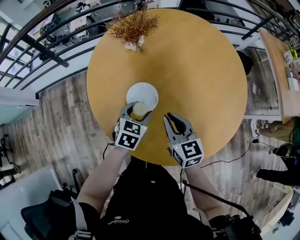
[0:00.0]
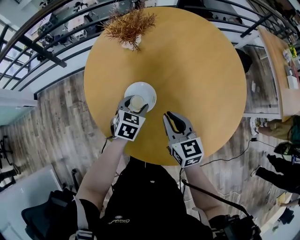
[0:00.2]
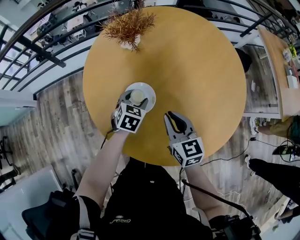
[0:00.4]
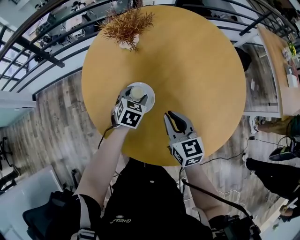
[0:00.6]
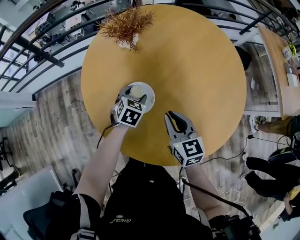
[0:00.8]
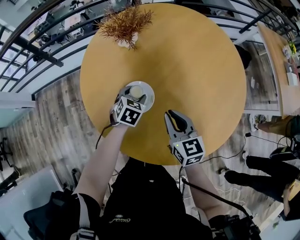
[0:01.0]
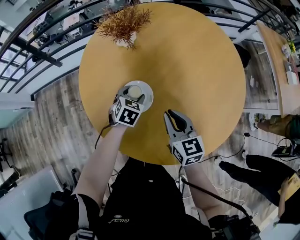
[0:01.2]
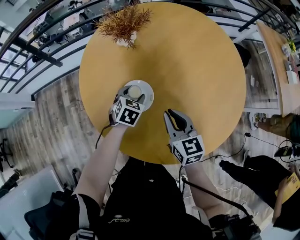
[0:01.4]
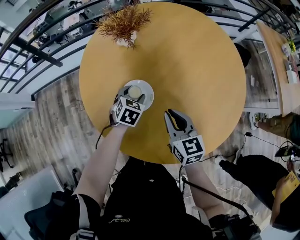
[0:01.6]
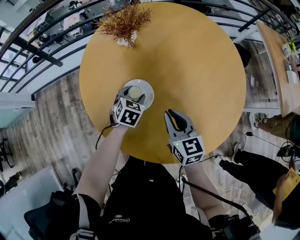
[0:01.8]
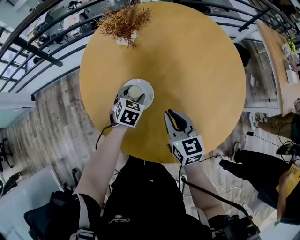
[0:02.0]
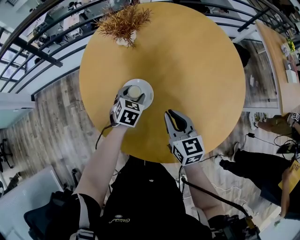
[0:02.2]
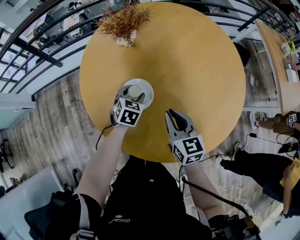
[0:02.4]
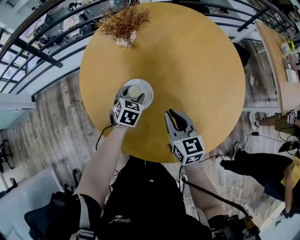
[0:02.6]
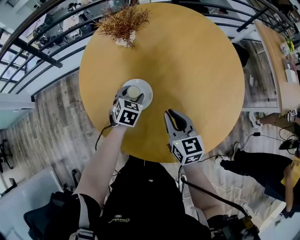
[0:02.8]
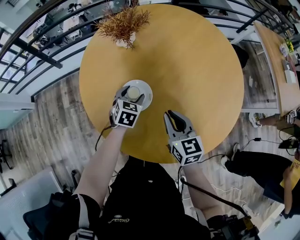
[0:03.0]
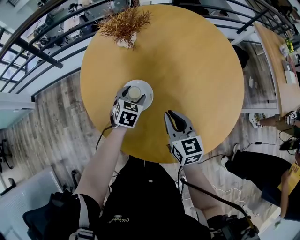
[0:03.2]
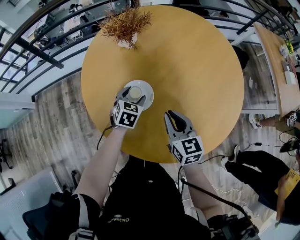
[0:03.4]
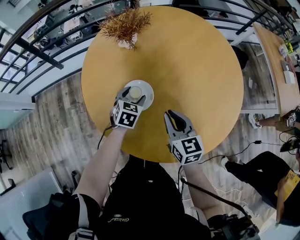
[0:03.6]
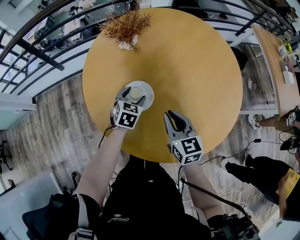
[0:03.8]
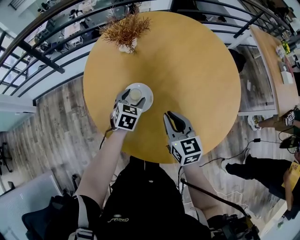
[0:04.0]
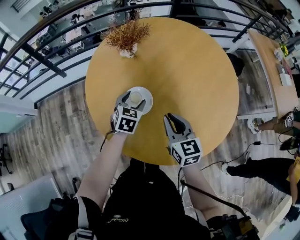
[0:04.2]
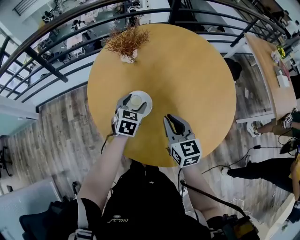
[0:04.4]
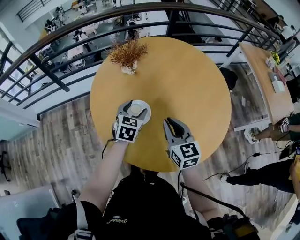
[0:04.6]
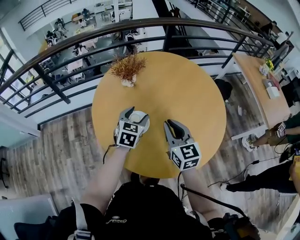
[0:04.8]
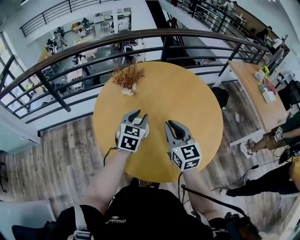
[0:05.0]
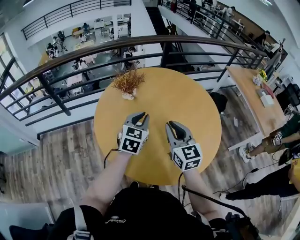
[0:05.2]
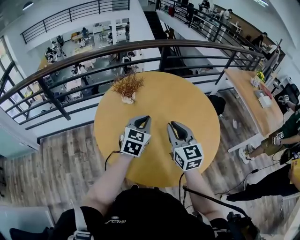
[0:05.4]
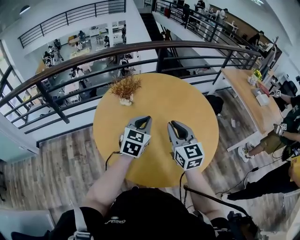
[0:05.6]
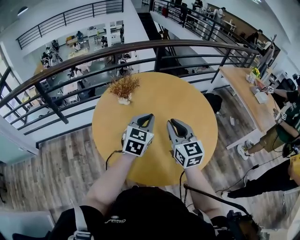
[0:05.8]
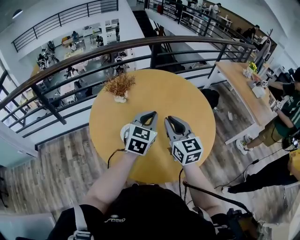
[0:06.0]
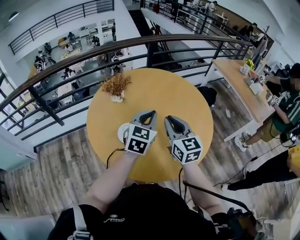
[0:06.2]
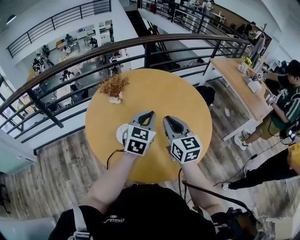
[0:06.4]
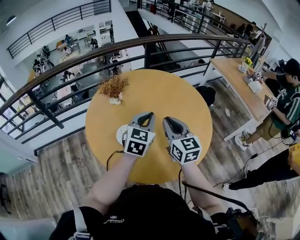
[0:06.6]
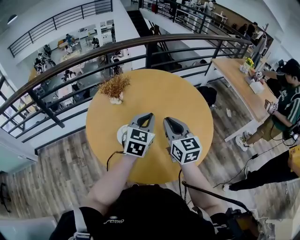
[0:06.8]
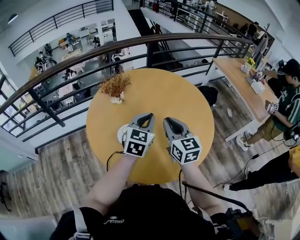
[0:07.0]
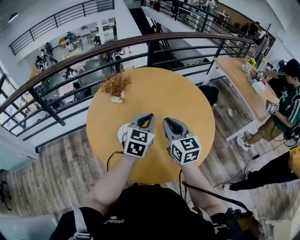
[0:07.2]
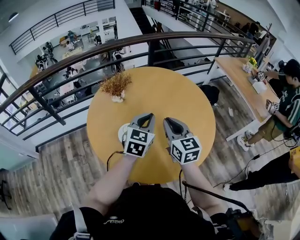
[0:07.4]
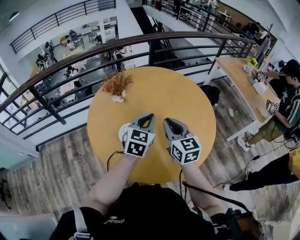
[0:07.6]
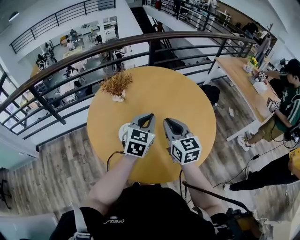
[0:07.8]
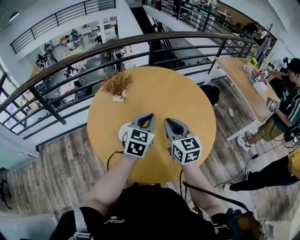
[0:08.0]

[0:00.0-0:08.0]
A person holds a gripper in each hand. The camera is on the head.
0:00.0 to 0:01.6: The left gripper travels forward and downward by approximately 10 cm.
0:01.6 to 0:03.2: There are only small adjustments of the grippers.
0:03.2 to 0:04.8: The grippers both shift upward by some 15 cm.
0:04.8 to 0:06.4: The right gripper heads upward and to the right, covering some 10 cm. Meanwhile the left gripper moves upward and to the right, roughly 20 cm, and closes up.
0:06.4 to 0:08.0: The grippers move only a little.

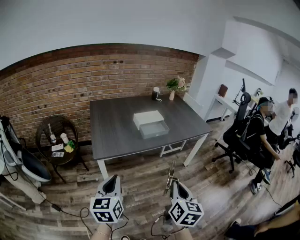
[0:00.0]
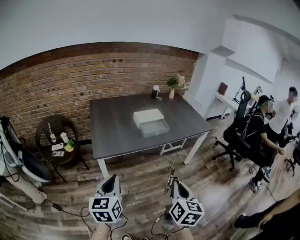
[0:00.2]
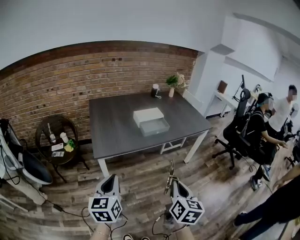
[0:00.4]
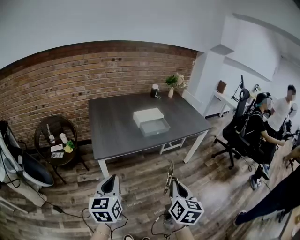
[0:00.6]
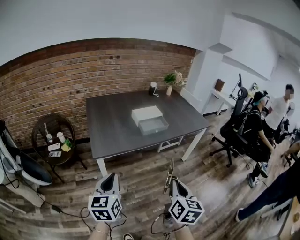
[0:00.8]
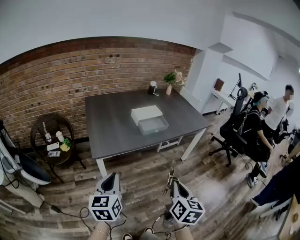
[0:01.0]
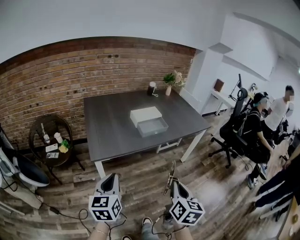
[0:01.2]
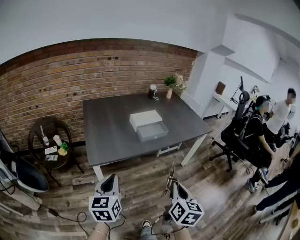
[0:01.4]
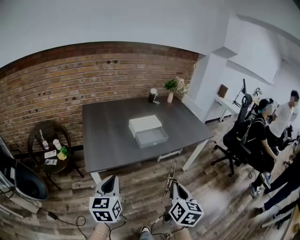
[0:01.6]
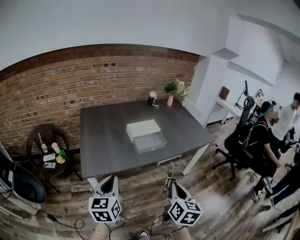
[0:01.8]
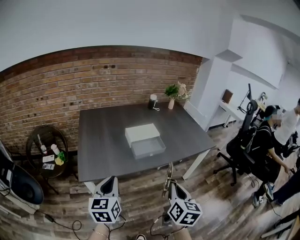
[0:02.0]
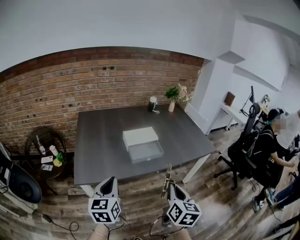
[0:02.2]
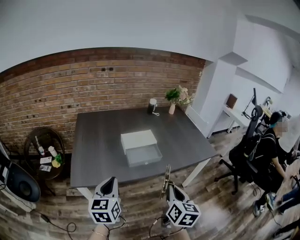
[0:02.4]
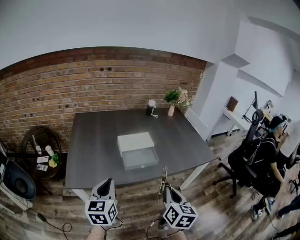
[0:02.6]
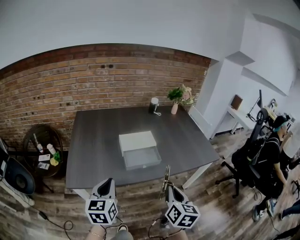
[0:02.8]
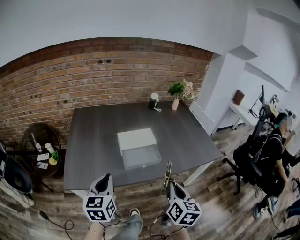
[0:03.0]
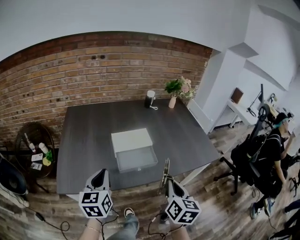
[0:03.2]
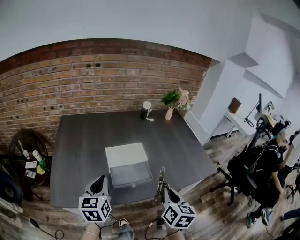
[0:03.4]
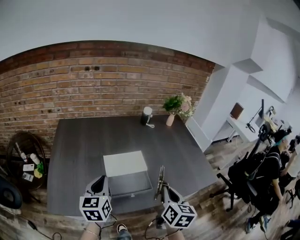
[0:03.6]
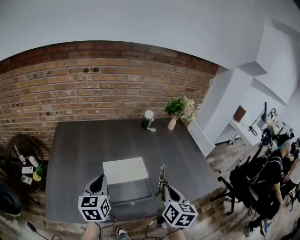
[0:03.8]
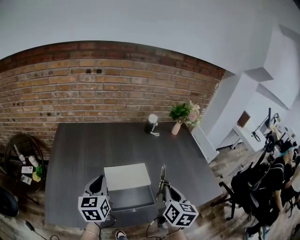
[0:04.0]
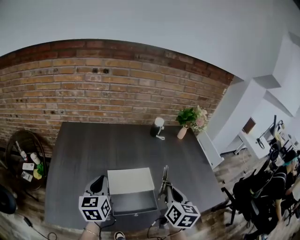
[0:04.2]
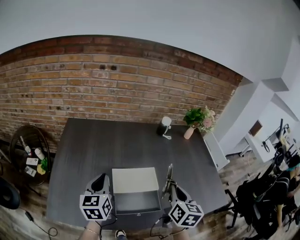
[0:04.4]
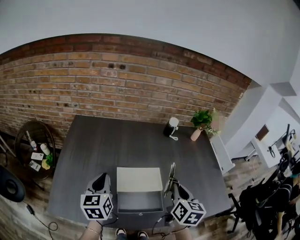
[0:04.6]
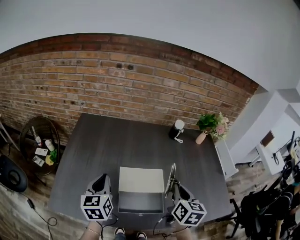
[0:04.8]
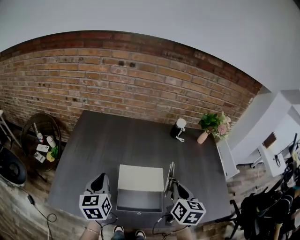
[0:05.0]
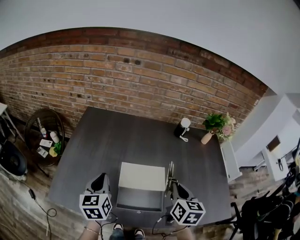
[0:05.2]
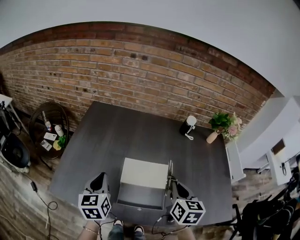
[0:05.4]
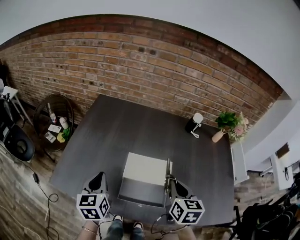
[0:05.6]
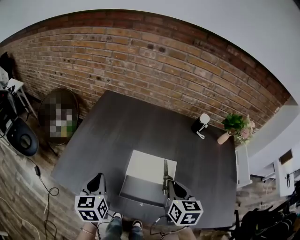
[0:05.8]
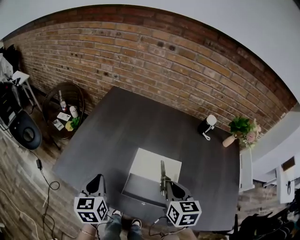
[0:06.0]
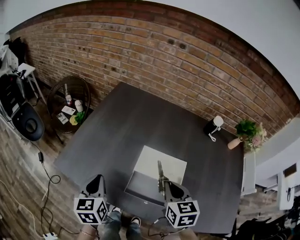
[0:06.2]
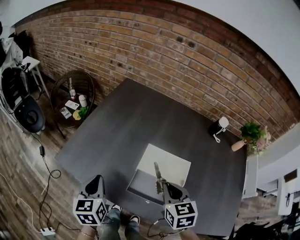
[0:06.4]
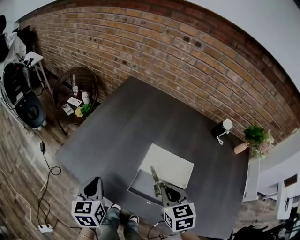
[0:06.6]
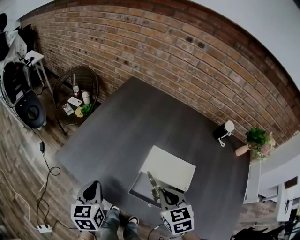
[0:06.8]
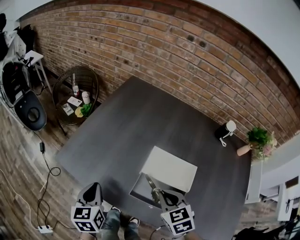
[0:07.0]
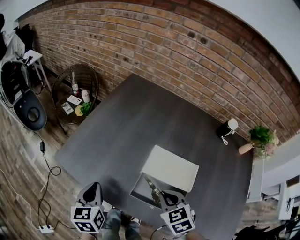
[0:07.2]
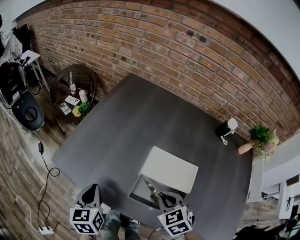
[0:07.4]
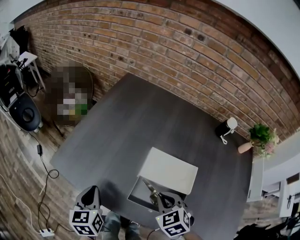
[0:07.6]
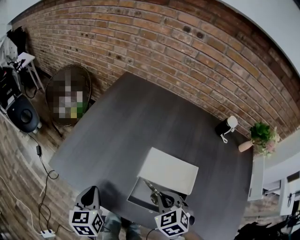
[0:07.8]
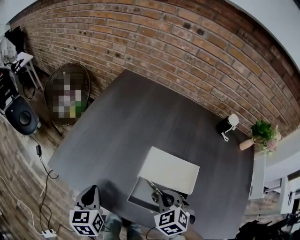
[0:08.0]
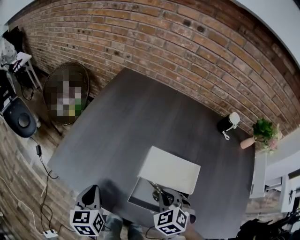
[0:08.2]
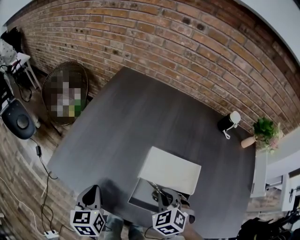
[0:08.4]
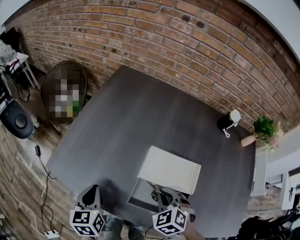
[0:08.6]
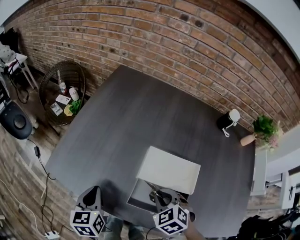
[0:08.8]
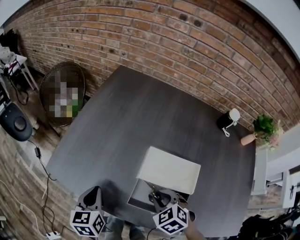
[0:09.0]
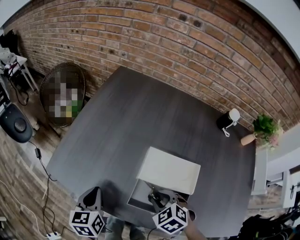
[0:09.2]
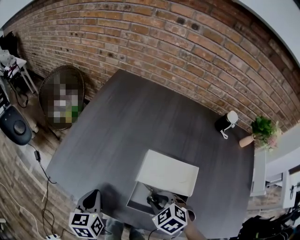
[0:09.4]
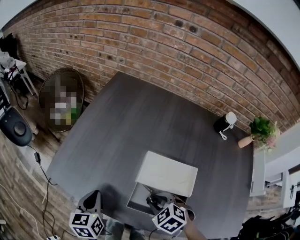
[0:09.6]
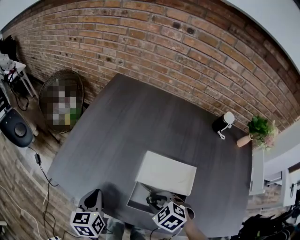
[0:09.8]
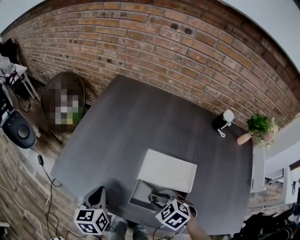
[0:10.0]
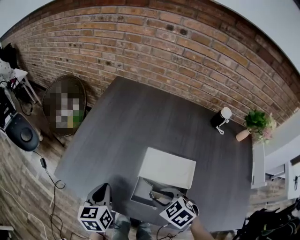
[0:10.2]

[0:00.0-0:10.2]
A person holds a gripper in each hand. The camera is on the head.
0:00.0 to 0:01.4: Both grippers move forward, approximately 5 cm.
0:01.4 to 0:03.0: The two grippers go approximately 30 cm forward and to the right.
0:03.0 to 0:04.4: Both grippers move forward, some 30 cm.
0:04.4 to 0:05.8: The left gripper ends up approximately 15 cm from where it was, and rotates some 20 degrees, while the right gripper changes place by approximately 10 cm, and turns by some 30 degrees.
0:05.8 to 0:07.2: The right gripper goes roughly 15 cm to the left and downward, and swivels about 40 degrees. Meanwhile the left gripper heads downward and to the left, covering approximately 10 cm.
0:07.2 to 0:08.8: The left gripper shifts by some 5 cm; the right gripper moves downward, roughly 5 cm.
0:08.8 to 0:10.2: The right gripper opens its fingers.

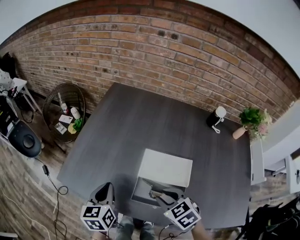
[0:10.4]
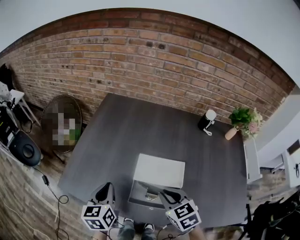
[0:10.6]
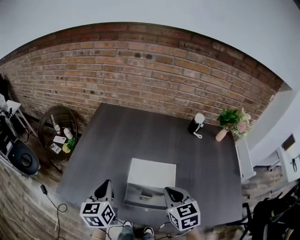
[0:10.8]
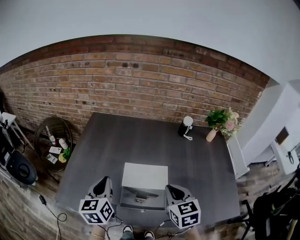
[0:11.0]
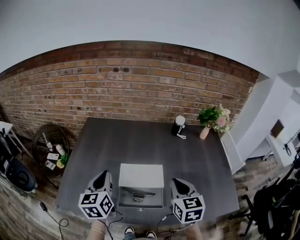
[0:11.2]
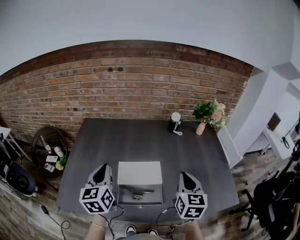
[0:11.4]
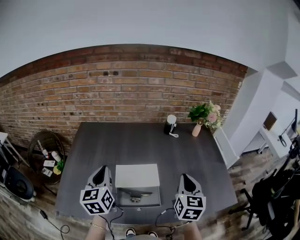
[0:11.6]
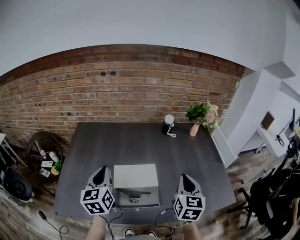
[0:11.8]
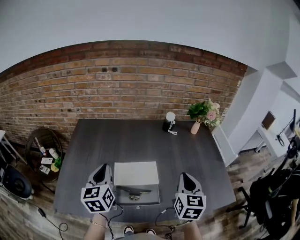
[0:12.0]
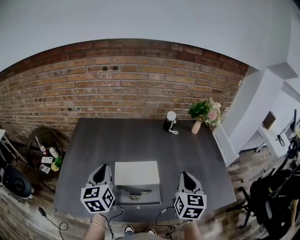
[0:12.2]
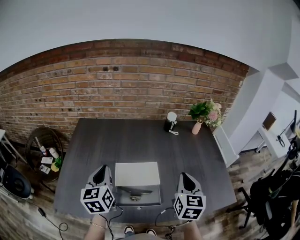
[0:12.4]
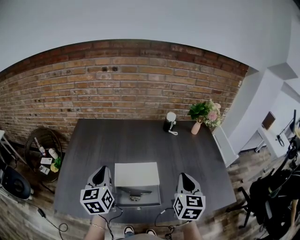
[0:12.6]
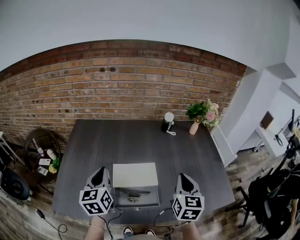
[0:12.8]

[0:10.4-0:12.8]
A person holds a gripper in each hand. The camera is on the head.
0:10.4 to 0:11.6: The left gripper moves upward, some 15 cm, and changes its angle by some 20 degrees. The right gripper changes place by about 30 cm, tilts its fingers some 40 degrees upward, and closes its fingers.
0:11.6 to 0:12.8: There are only small adjustments of the grippers.

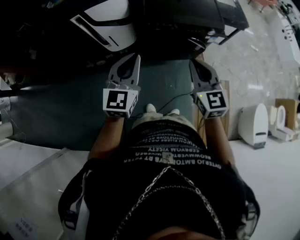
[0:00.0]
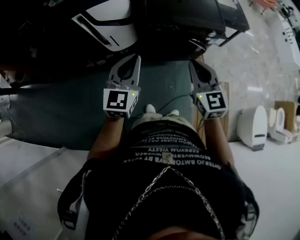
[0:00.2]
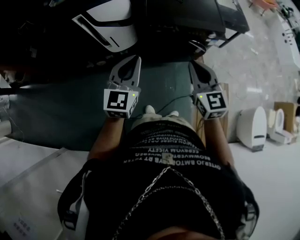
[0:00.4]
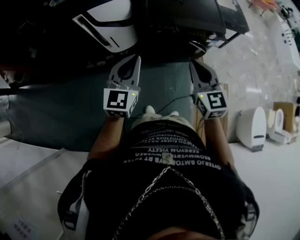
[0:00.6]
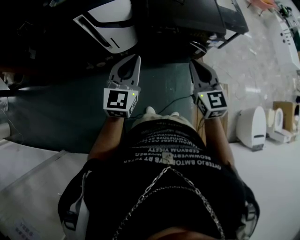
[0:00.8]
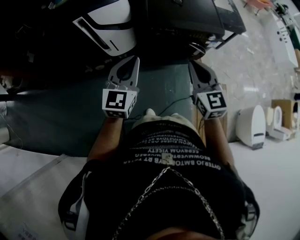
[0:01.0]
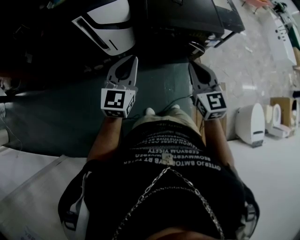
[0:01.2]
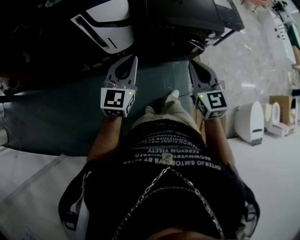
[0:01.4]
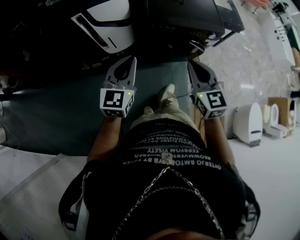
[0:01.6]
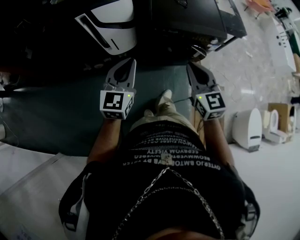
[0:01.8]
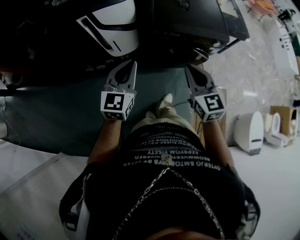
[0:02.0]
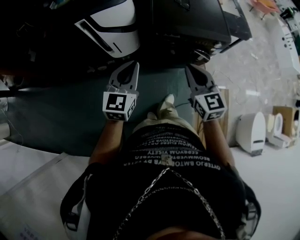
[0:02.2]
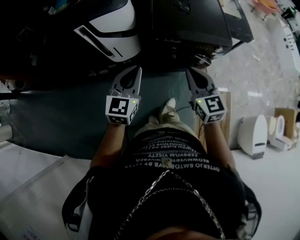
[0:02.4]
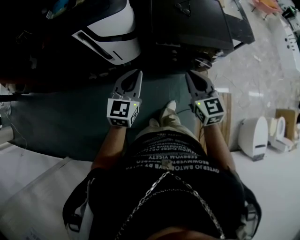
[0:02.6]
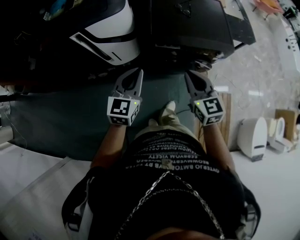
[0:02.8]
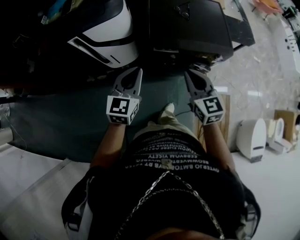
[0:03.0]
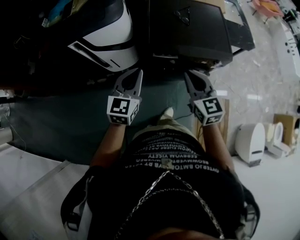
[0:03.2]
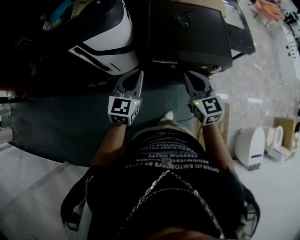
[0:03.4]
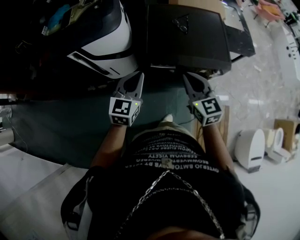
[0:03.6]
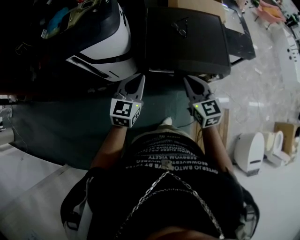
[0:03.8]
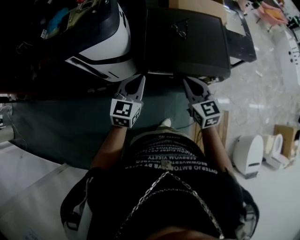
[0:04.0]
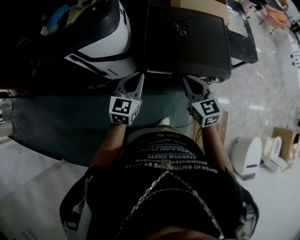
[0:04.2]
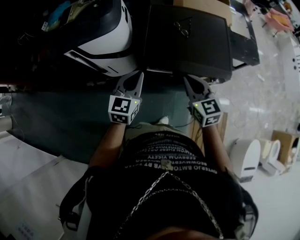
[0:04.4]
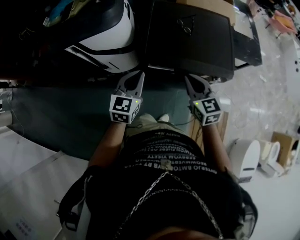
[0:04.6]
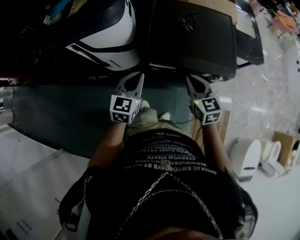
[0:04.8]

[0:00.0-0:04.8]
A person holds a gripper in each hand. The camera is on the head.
0:00.0 to 0:01.6: Both grippers travel together to the left, about 5 cm.
0:01.6 to 0:03.2: Both grippers travel together forward, some 20 cm.
0:03.2 to 0:04.8: The grippers both shift forward, to the right and downward by roughly 10 cm.
